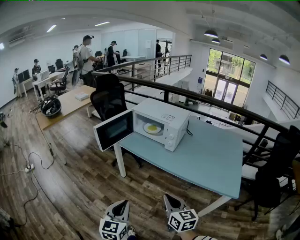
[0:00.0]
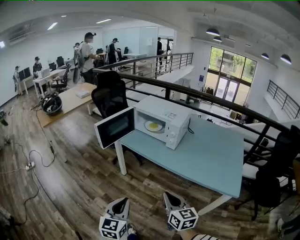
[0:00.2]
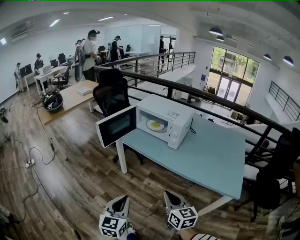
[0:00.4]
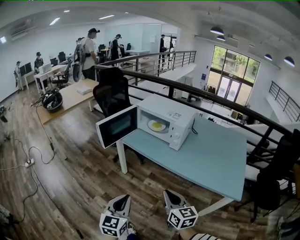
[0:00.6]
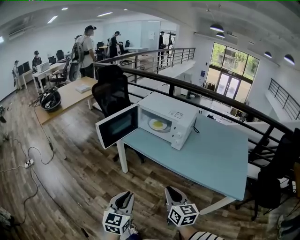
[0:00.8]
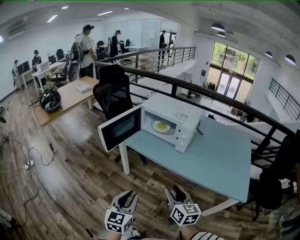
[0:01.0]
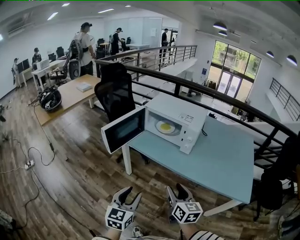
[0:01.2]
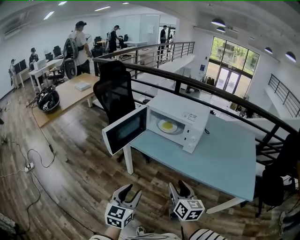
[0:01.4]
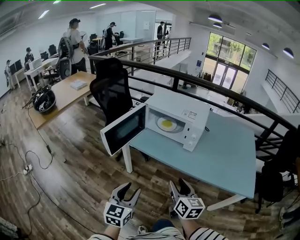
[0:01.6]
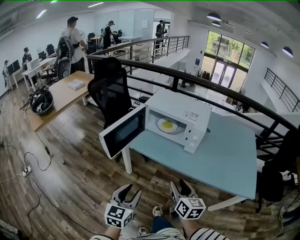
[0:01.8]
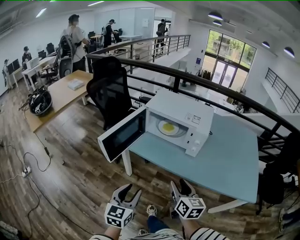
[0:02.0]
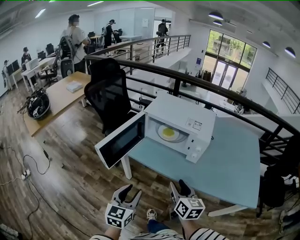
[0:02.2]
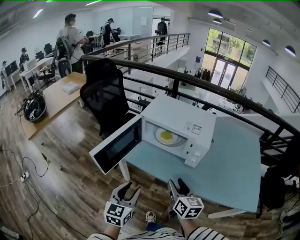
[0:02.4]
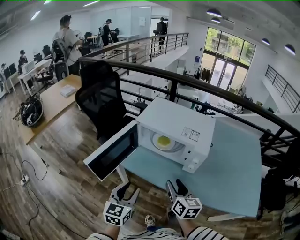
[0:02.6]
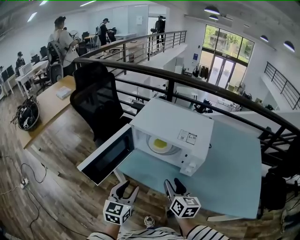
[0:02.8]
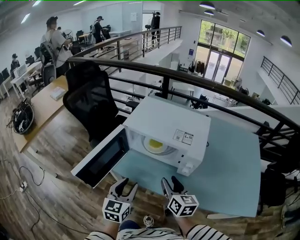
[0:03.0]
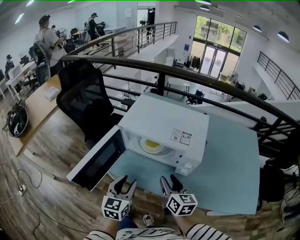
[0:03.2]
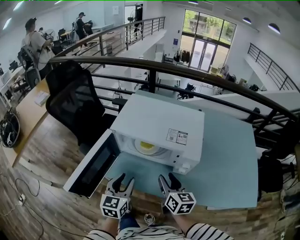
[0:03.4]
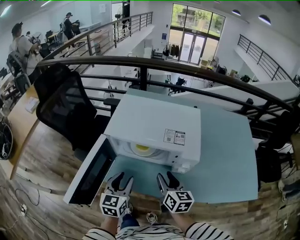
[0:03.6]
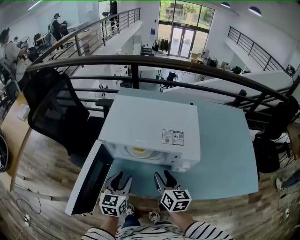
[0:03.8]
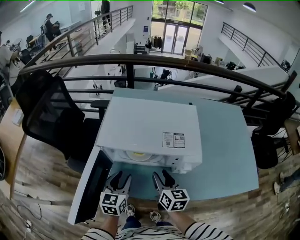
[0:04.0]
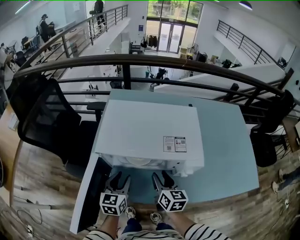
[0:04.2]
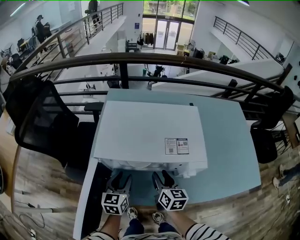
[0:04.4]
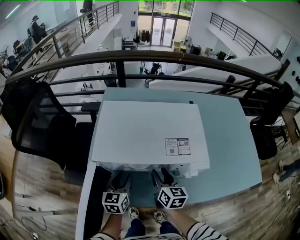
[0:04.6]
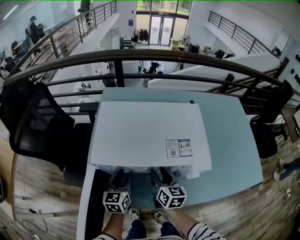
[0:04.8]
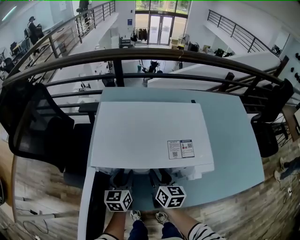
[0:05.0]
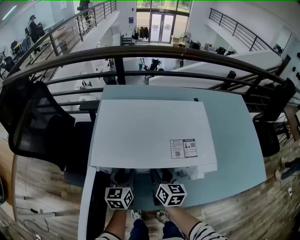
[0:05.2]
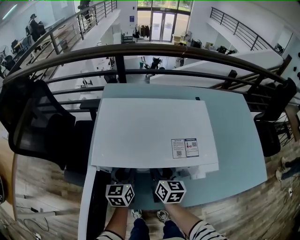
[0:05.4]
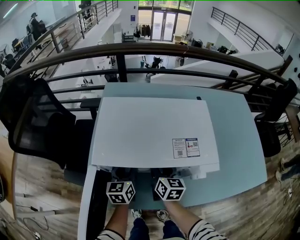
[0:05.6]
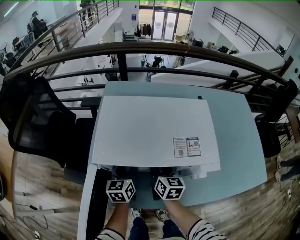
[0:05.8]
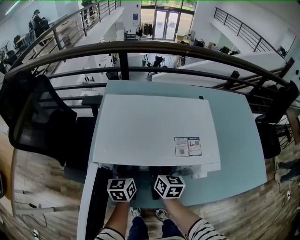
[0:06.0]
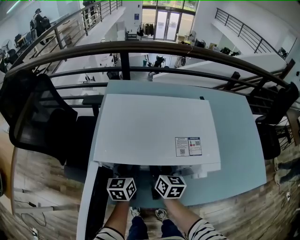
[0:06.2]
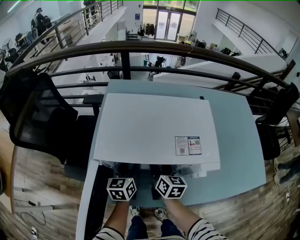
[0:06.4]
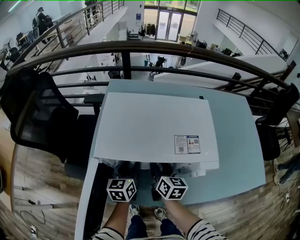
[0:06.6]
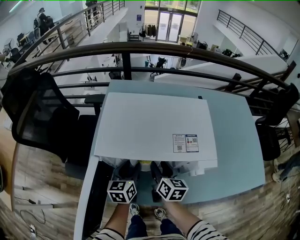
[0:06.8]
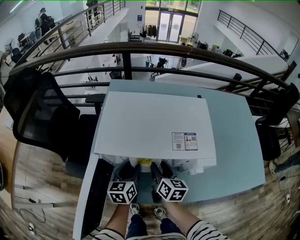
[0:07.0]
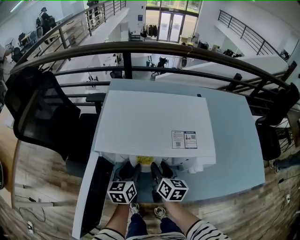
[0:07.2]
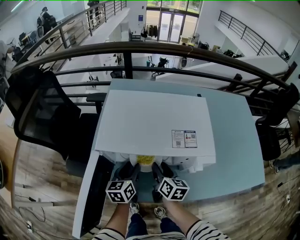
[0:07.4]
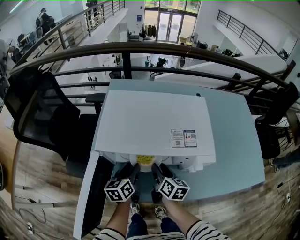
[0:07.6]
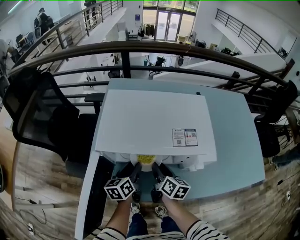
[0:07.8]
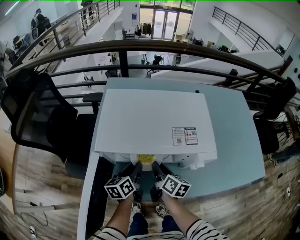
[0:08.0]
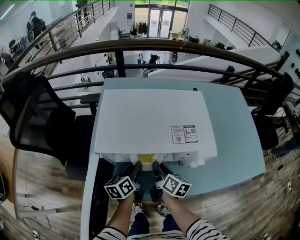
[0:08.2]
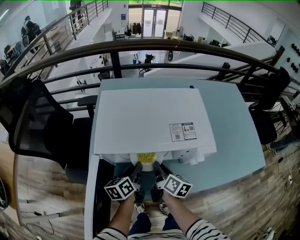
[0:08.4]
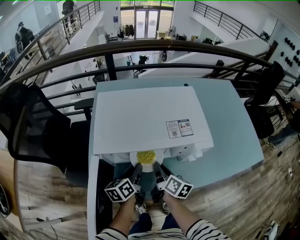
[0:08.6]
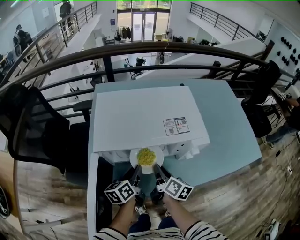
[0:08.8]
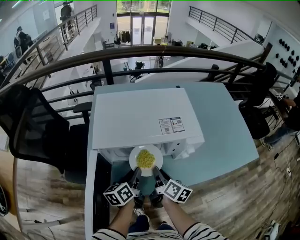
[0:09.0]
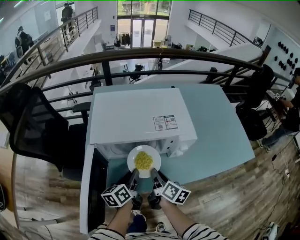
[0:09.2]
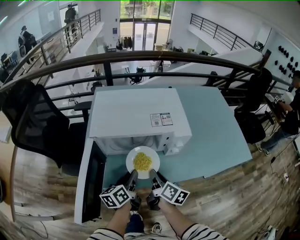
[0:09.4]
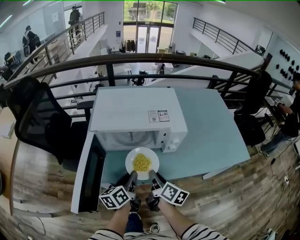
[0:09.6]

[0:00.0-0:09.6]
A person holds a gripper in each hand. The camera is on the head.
0:00.0 to 0:01.6: The grippers both shift forward and to the left by about 20 cm. The right gripper opens up, while the left gripper opens.
0:01.6 to 0:03.2: The two grippers go roughly 30 cm forward.
0:03.2 to 0:04.8: Both grippers move forward and downward, some 20 cm. The right gripper changes its angle by some 20 degrees.
0:04.8 to 0:06.4: The grippers stay close to where they were, moving slightly.
0:06.4 to 0:08.0: The right gripper shifts by approximately 5 cm, and turns by some 20 degrees. The left gripper turns by about 20 degrees.
0:08.0 to 0:09.6: The right gripper heads backward, covering some 15 cm. The left gripper moves backward and upward, some 15 cm.

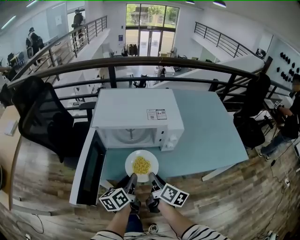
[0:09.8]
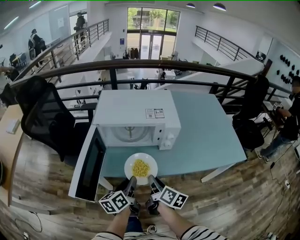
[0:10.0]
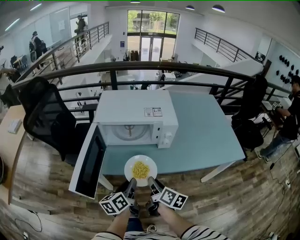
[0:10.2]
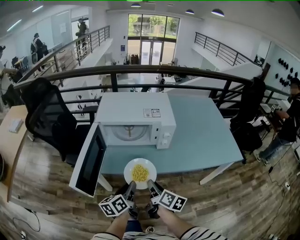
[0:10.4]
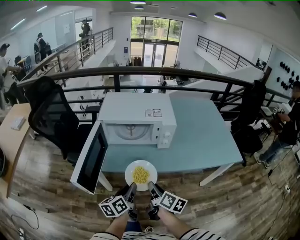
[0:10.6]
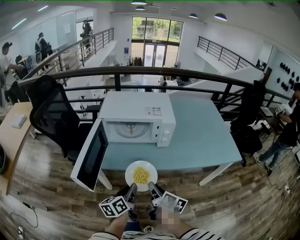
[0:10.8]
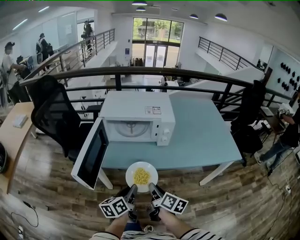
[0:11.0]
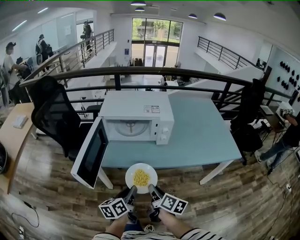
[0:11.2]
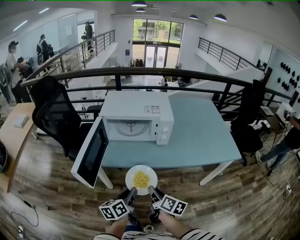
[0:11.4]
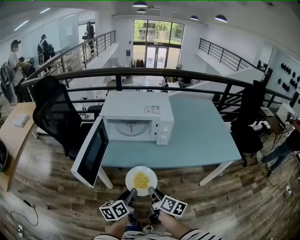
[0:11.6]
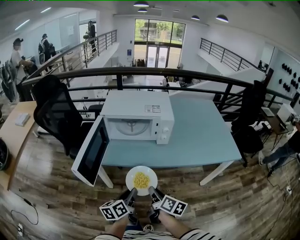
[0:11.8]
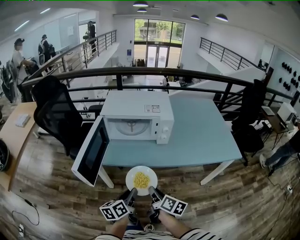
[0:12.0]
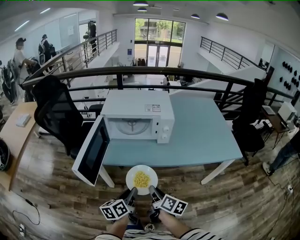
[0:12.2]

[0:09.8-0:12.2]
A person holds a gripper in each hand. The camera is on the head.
0:09.8 to 0:11.0: The two grippers go roughly 15 cm backward.
0:11.0 to 0:12.2: There are only small adjustments of the grippers.

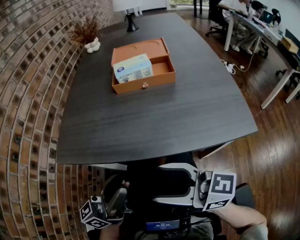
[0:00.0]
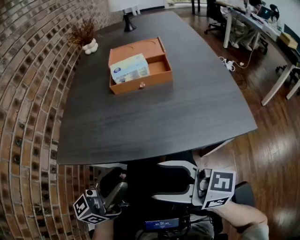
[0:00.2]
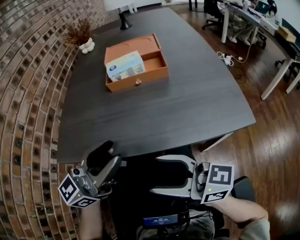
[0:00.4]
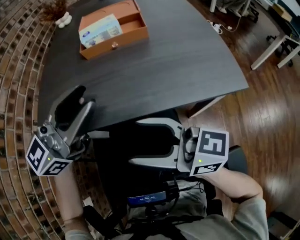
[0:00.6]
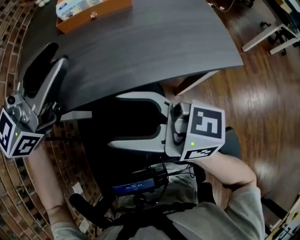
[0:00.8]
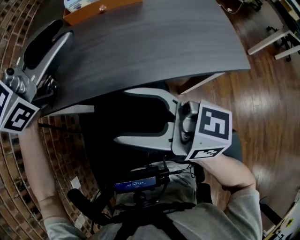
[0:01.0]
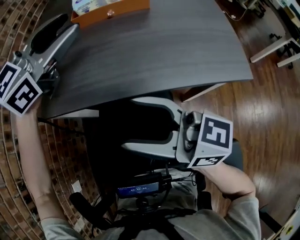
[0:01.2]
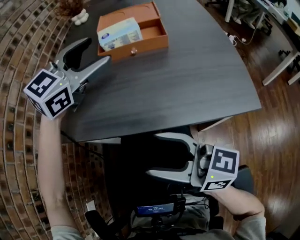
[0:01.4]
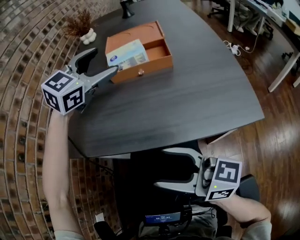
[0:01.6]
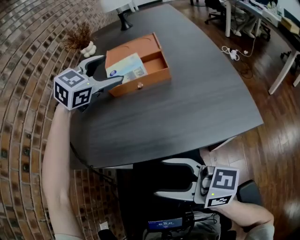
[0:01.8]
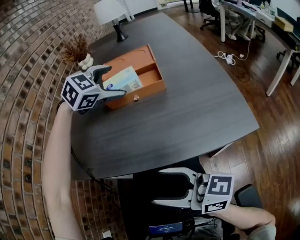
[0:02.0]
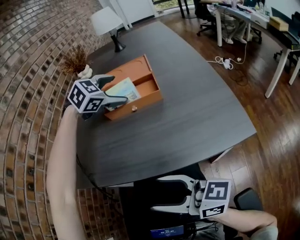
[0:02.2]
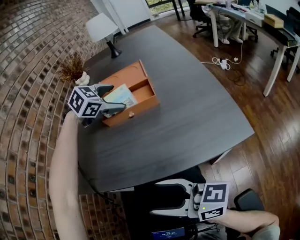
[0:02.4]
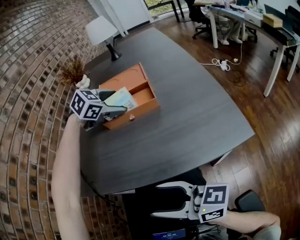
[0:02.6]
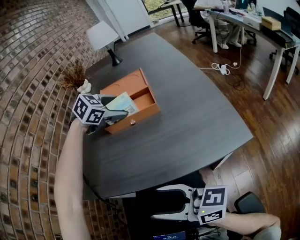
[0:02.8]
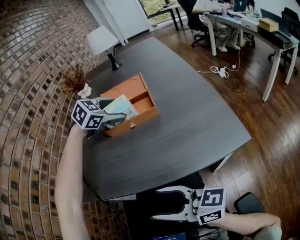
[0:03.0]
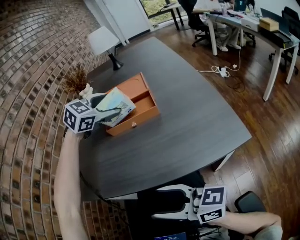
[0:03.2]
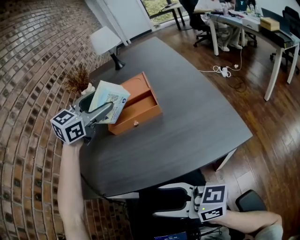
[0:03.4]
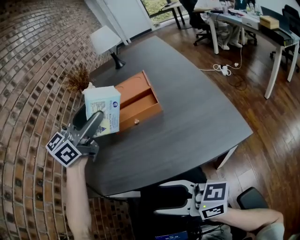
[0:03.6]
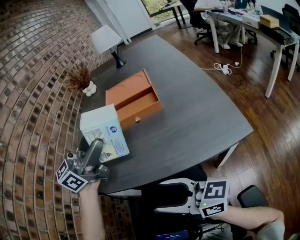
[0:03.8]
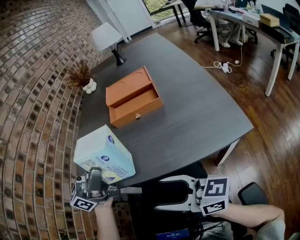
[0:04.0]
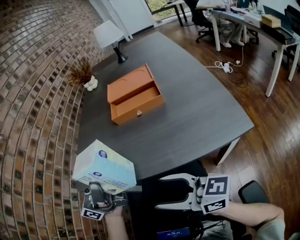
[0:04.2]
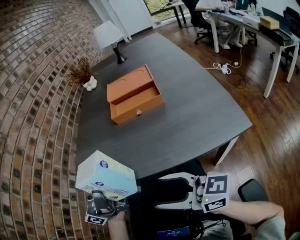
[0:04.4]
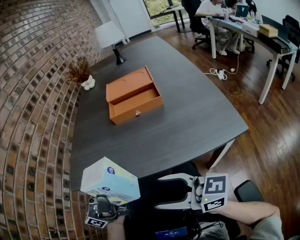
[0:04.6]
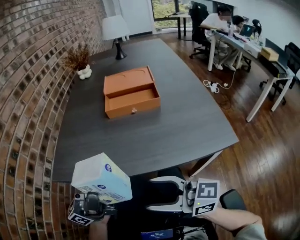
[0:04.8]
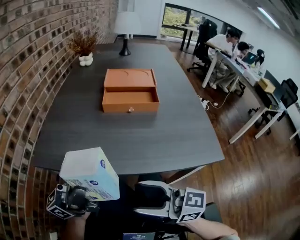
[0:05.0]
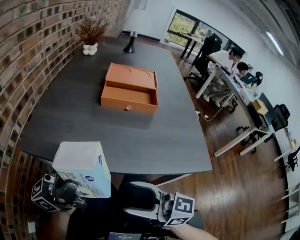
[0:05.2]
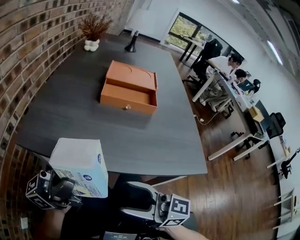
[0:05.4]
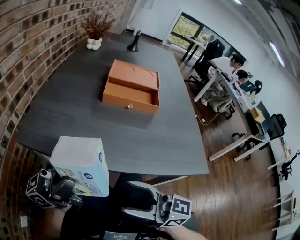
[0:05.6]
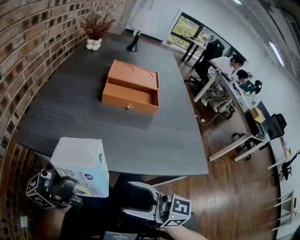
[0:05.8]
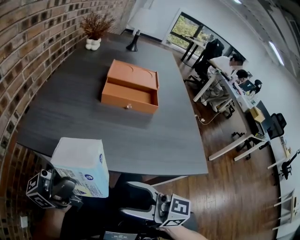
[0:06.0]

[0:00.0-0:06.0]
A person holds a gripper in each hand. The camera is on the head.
0:00.0 to 0:01.6: The left gripper travels forward by roughly 30 cm, points its fingers some 40 degrees further downward, and opens up.
0:01.6 to 0:03.0: The left gripper goes roughly 10 cm downward, forward and to the right, and turns by about 30 degrees.
0:03.0 to 0:04.4: The left gripper goes roughly 35 cm backward and to the left, and angles its fingers upward, by about 90 degrees.
0:04.4 to 0:06.0: The left gripper shifts by roughly 5 cm.

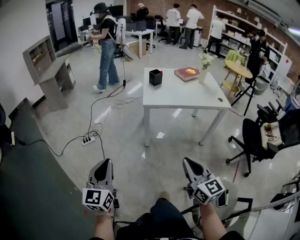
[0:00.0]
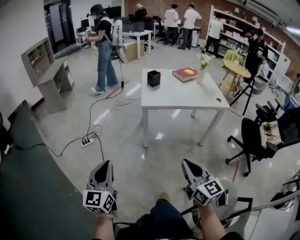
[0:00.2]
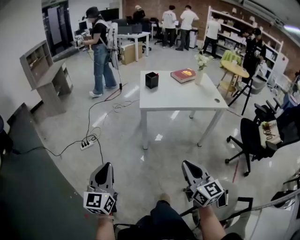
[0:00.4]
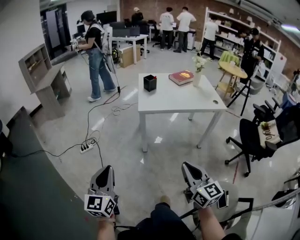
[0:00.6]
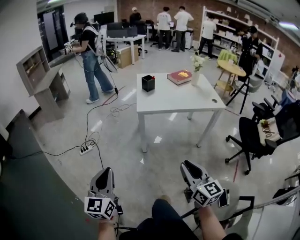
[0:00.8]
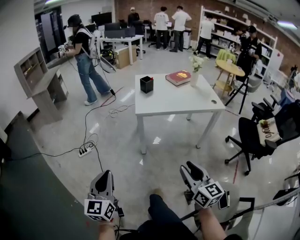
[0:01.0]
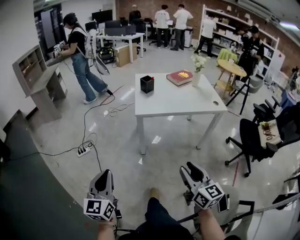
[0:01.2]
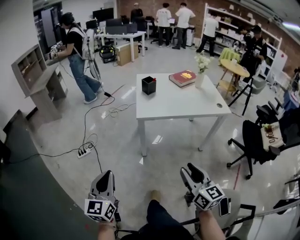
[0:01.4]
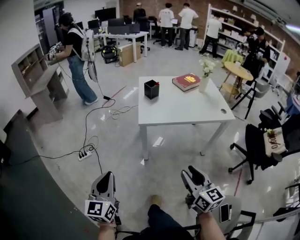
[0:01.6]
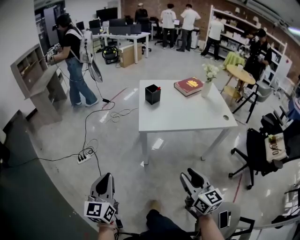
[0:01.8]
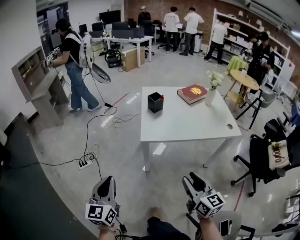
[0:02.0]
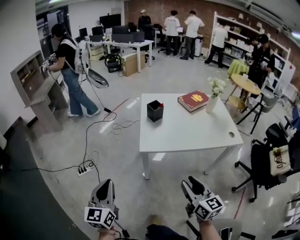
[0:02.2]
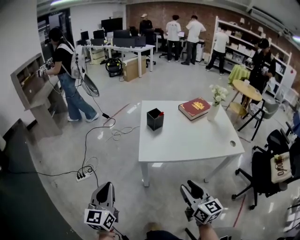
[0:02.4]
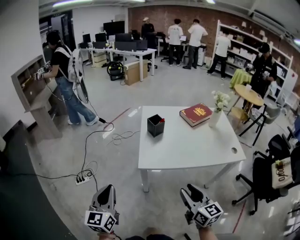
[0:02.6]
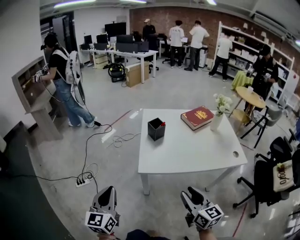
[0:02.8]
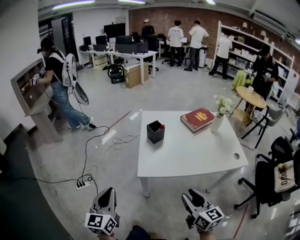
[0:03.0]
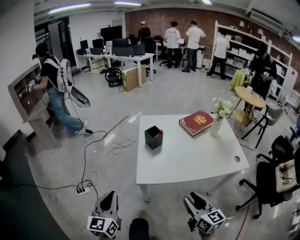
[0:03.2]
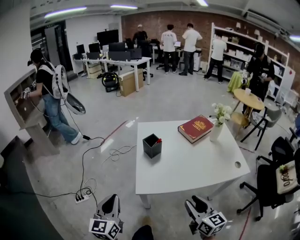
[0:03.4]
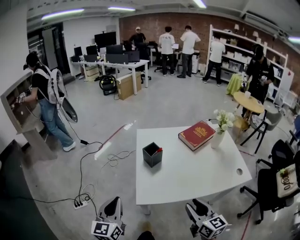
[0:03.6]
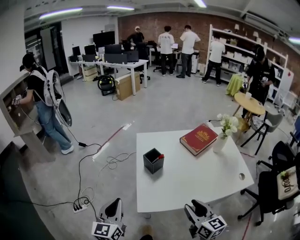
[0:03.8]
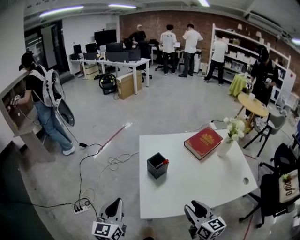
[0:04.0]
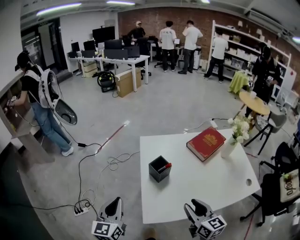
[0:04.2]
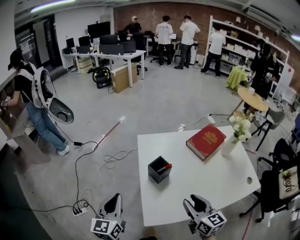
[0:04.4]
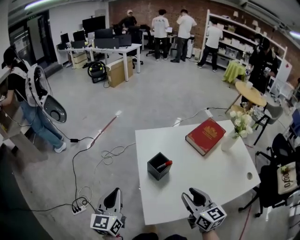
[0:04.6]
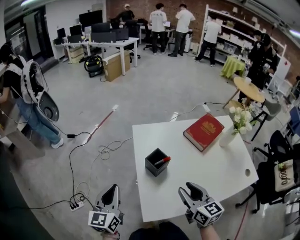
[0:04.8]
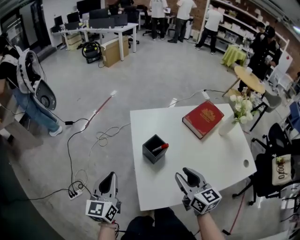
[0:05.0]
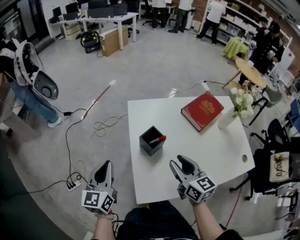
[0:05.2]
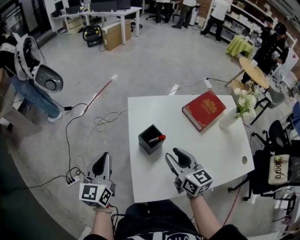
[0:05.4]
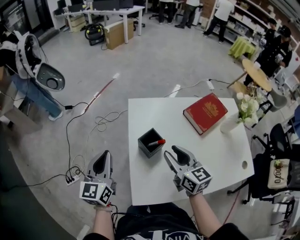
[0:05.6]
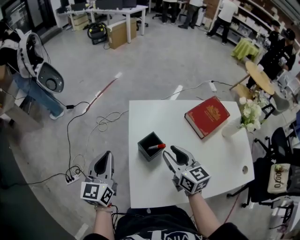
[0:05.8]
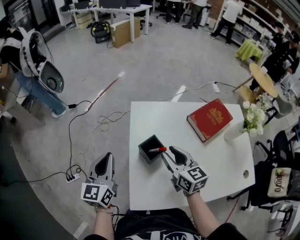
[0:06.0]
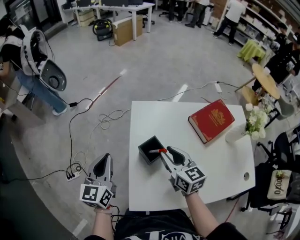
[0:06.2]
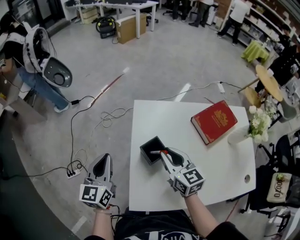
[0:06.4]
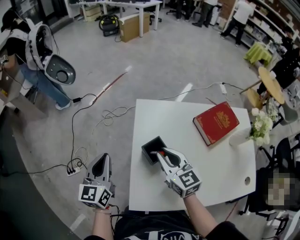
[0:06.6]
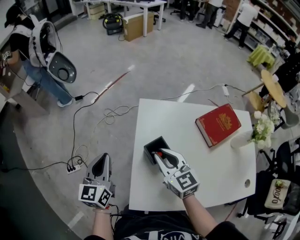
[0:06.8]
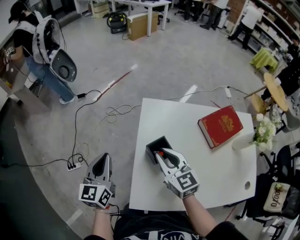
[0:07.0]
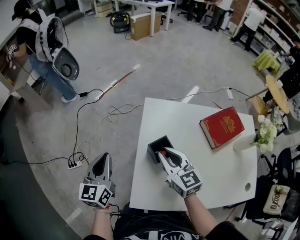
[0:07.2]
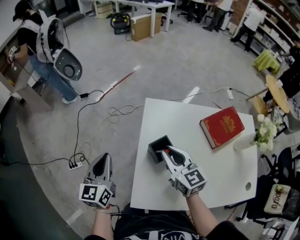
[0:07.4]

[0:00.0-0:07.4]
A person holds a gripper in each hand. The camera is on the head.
0:00.0 to 0:01.4: The grippers both shift forward by about 10 cm. The right gripper opens its fingers.
0:01.4 to 0:03.0: The two grippers go about 30 cm forward.
0:03.0 to 0:04.4: Both grippers move forward, approximately 30 cm.
0:04.4 to 0:06.0: The right gripper moves forward, some 20 cm. Meanwhile the left gripper shifts approximately 10 cm forward.
0:06.0 to 0:07.4: Both grippers move to the left, some 5 cm. The right gripper closes.
